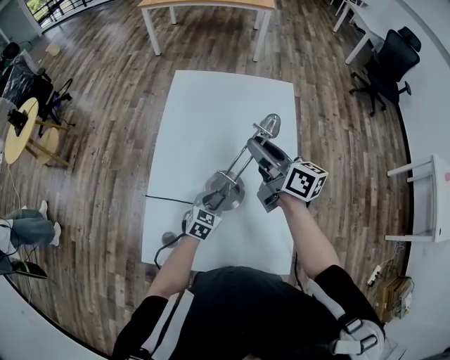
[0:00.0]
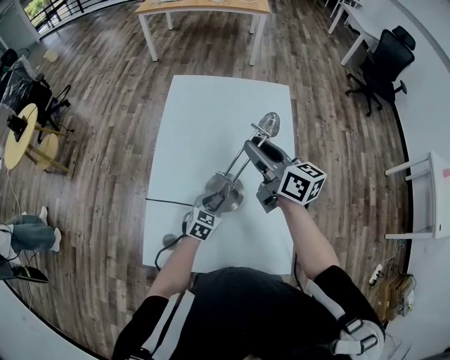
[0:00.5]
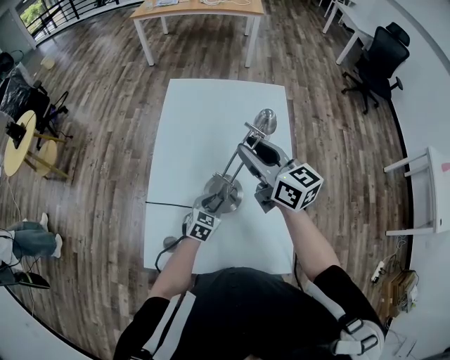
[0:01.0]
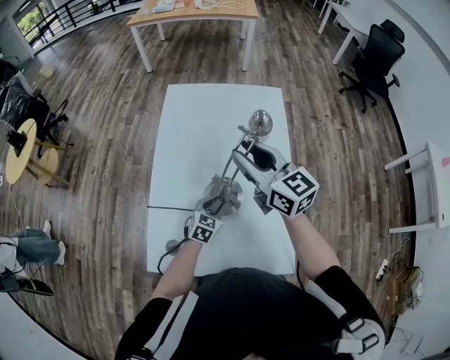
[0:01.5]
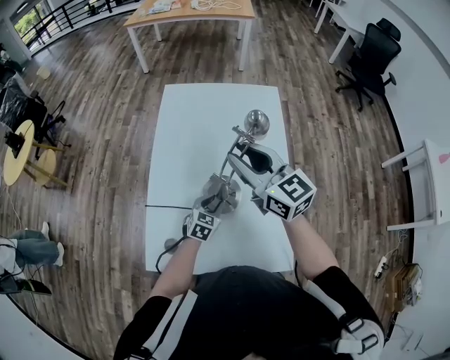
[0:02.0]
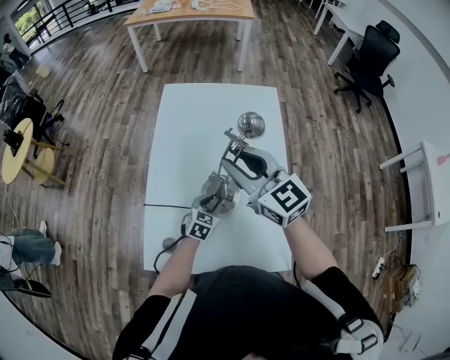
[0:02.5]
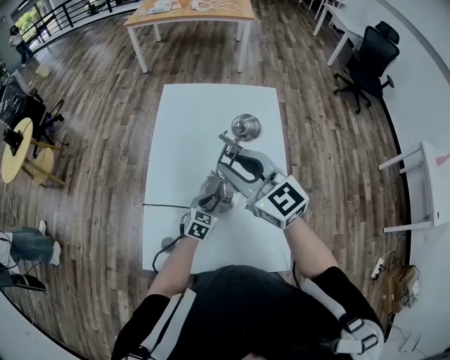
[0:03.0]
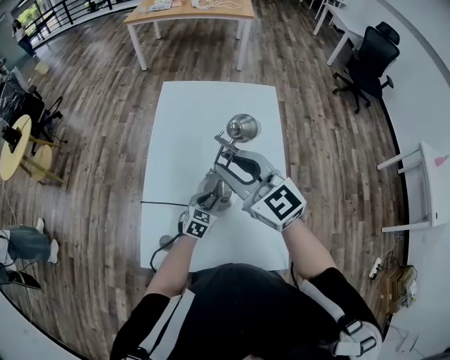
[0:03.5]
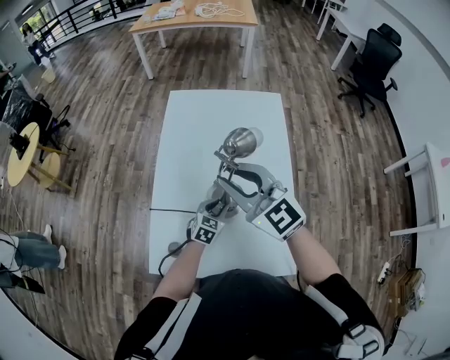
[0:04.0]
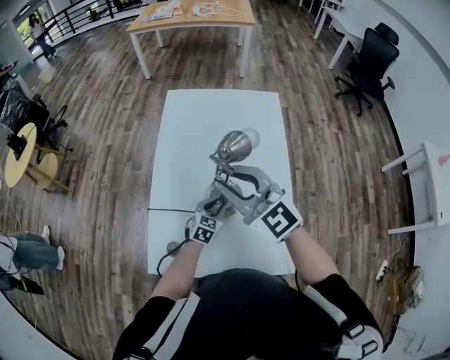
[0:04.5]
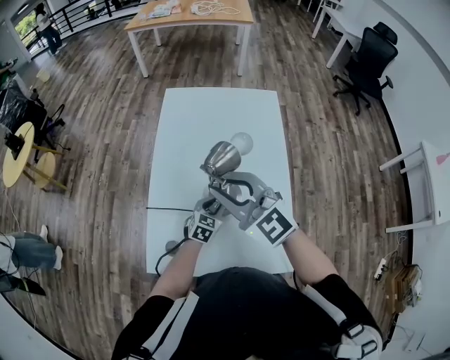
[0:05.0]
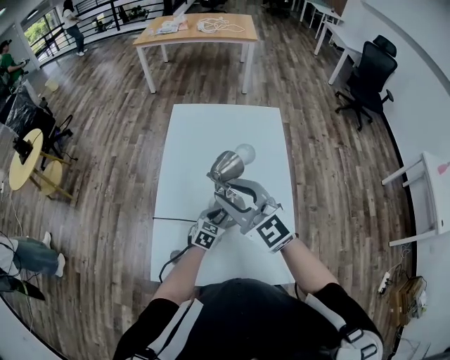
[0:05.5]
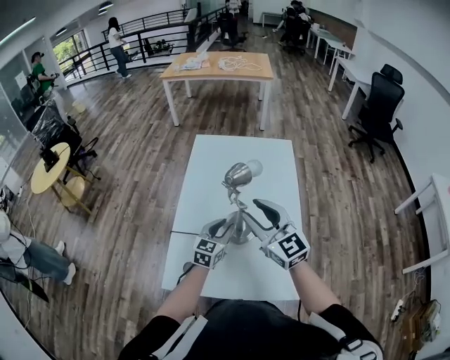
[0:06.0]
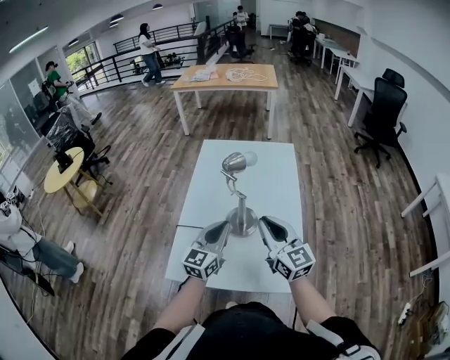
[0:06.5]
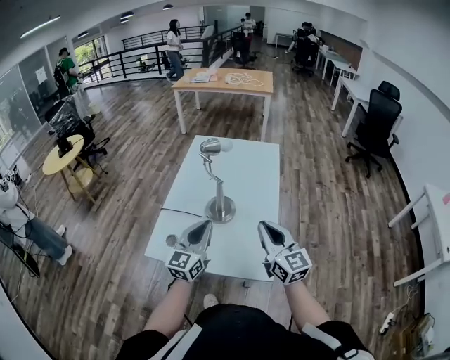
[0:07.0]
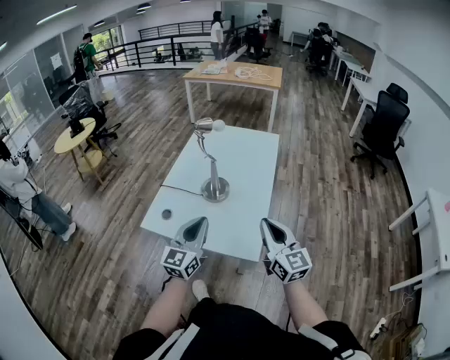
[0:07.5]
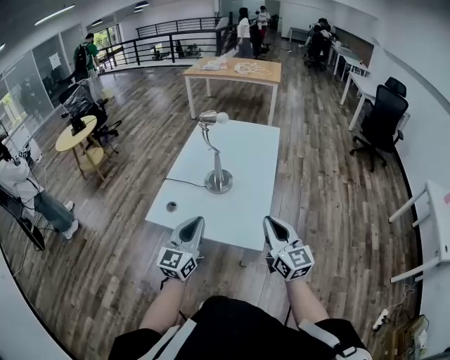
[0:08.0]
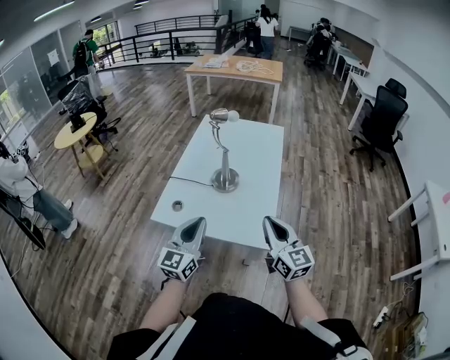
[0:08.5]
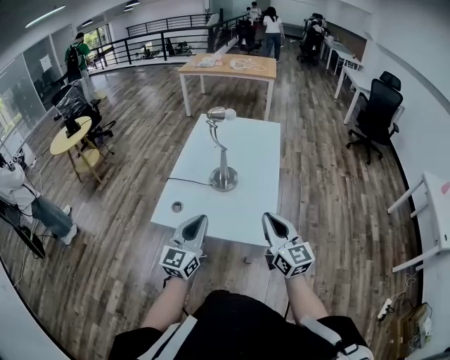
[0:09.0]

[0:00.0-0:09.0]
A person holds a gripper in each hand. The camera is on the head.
0:00.0 to 0:02.0: The right gripper travels upward and backward by approximately 10 cm, and turns by roughly 40 degrees.
0:02.0 to 0:04.5: The right gripper heads backward and to the left, covering roughly 10 cm, and changes its angle by some 20 degrees.
0:04.5 to 0:07.0: The left gripper moves upward and backward, some 30 cm, points its fingers some 40 degrees further upward, and closes its fingers. The right gripper travels backward and to the right by roughly 25 cm, turns by roughly 30 degrees, and opens and closes again.
0:07.0 to 0:09.0: Both grippers move backward, approximately 10 cm.

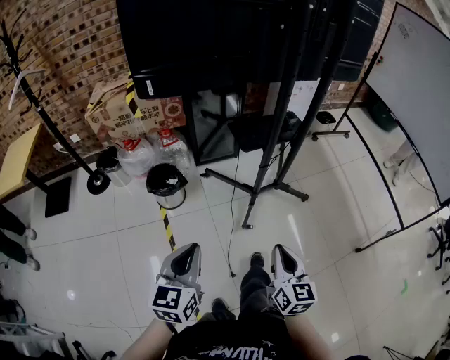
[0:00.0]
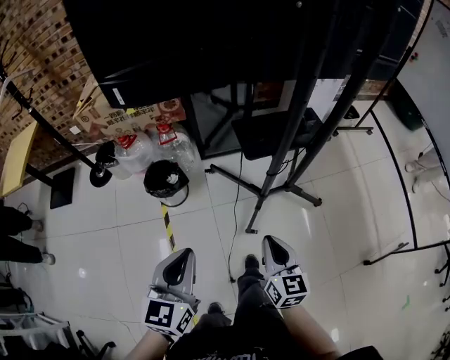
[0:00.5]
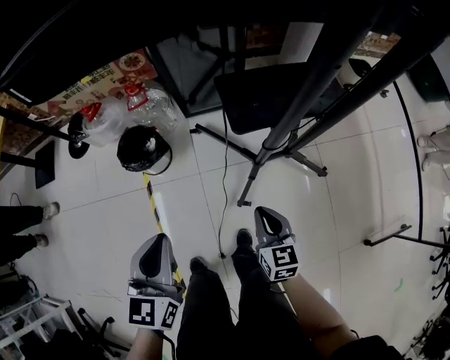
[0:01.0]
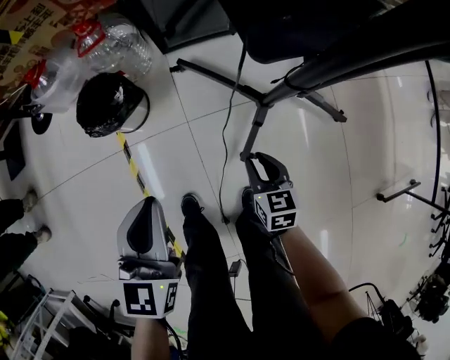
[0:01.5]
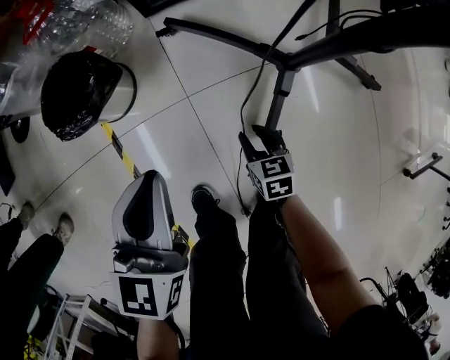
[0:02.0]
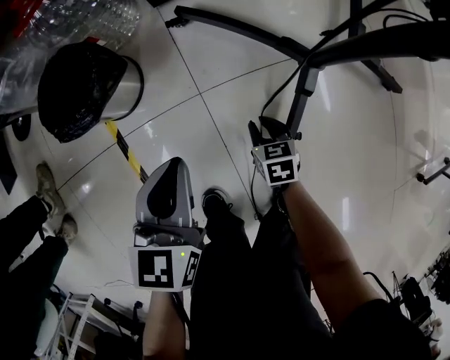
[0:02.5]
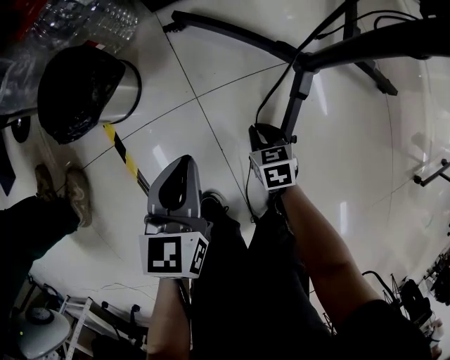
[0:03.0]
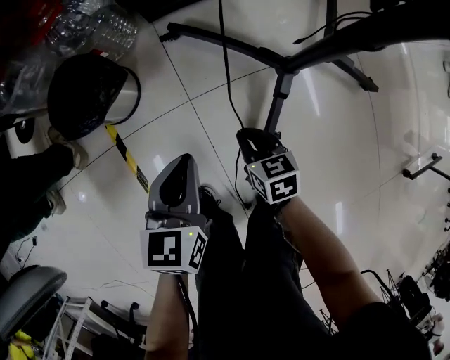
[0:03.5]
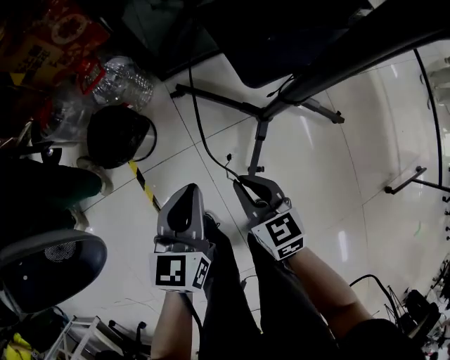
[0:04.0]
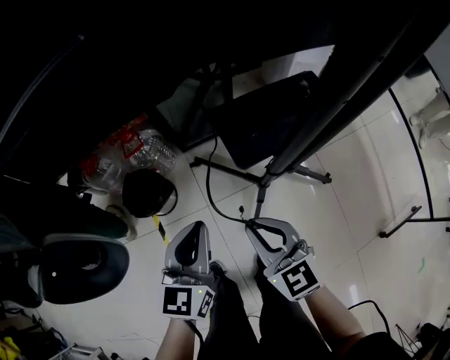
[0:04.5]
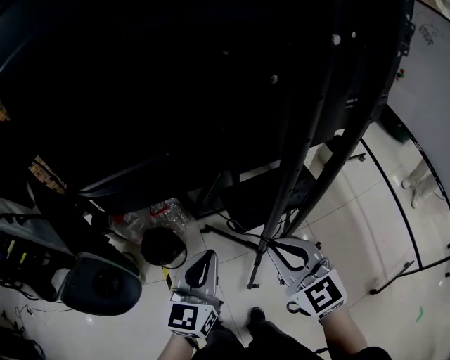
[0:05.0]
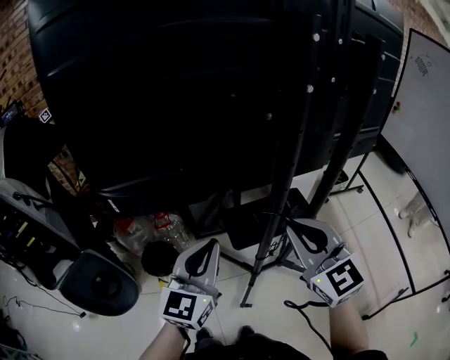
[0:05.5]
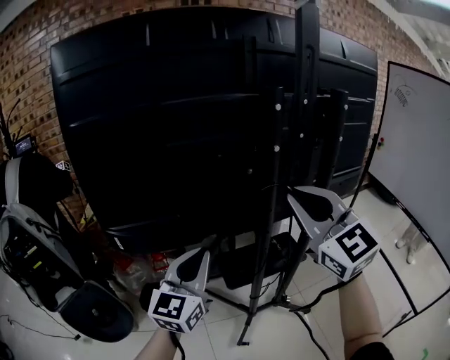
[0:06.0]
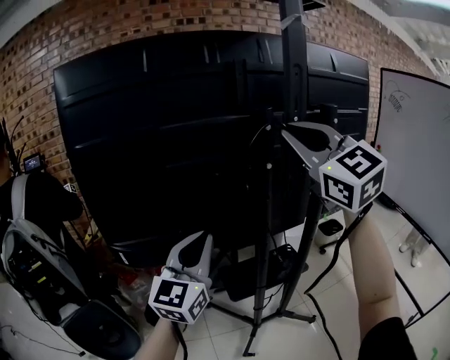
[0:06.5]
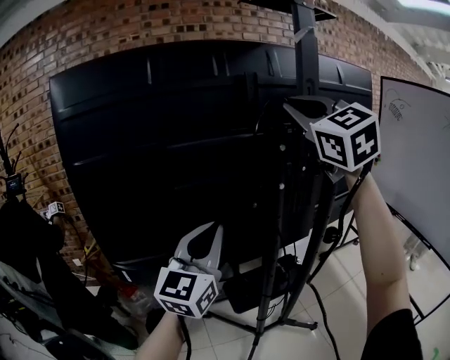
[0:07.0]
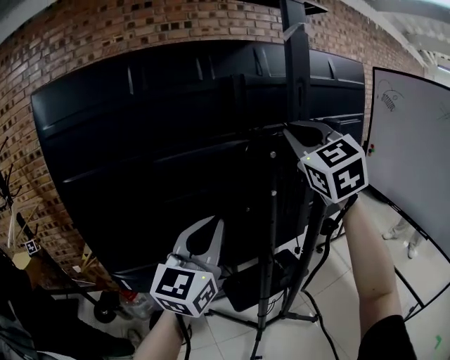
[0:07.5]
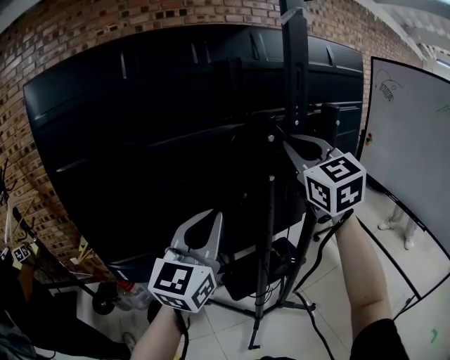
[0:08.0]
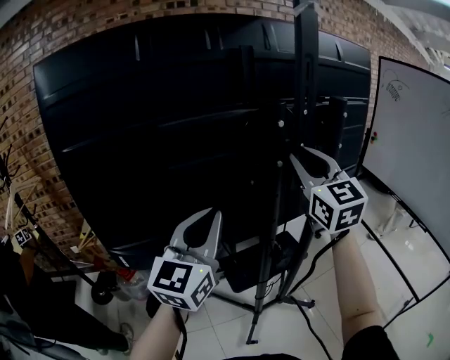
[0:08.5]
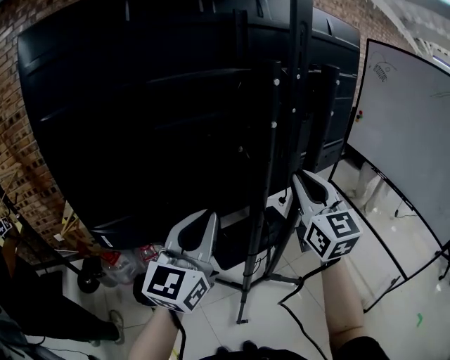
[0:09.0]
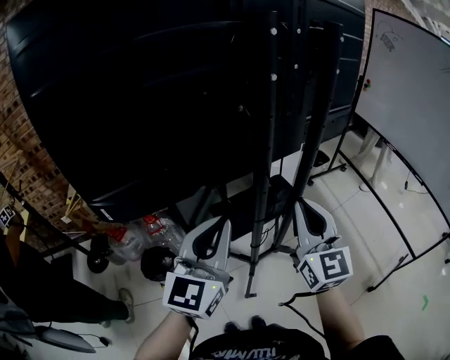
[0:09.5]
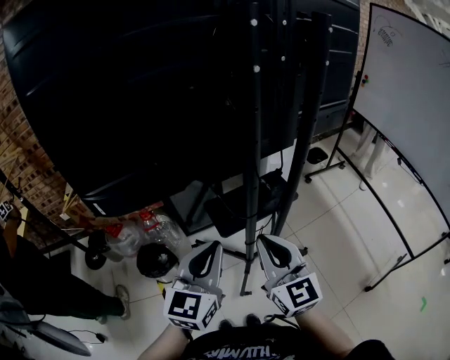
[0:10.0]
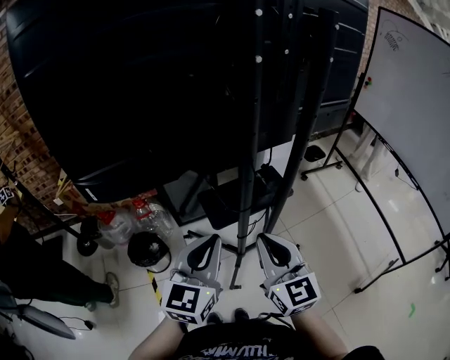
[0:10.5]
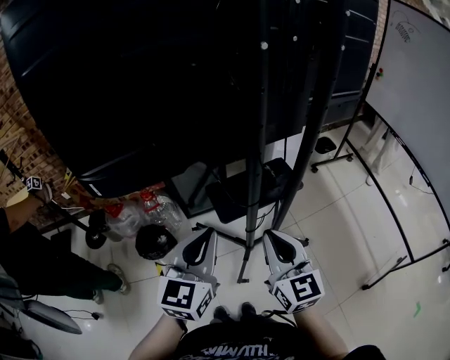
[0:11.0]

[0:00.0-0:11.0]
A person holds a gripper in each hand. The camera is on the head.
0:00.0 to 0:02.0: The grippers both shift downward and forward by roughly 60 cm. The right gripper tilts its fingers roughly 40 degrees downward, and opens up.
0:02.0 to 0:03.5: The right gripper closes its fingers. The left gripper heads downward, covering about 10 cm.
0:03.5 to 0:05.5: The grippers both shift upward by about 70 cm. The right gripper points its fingers roughly 50 degrees further upward, while the left gripper points its fingers roughly 40 degrees further upward.
0:05.5 to 0:07.5: Both grippers travel together upward and forward, roughly 30 cm. The right gripper changes its angle by approximately 20 degrees.
0:07.5 to 0:09.0: The right gripper heads downward and backward, covering roughly 25 cm, and changes its angle by approximately 20 degrees. The left gripper is displaced downward and backward by about 10 cm.
0:09.0 to 0:11.0: The right gripper goes about 25 cm downward and backward. The left gripper goes about 15 cm downward, and turns by about 20 degrees.

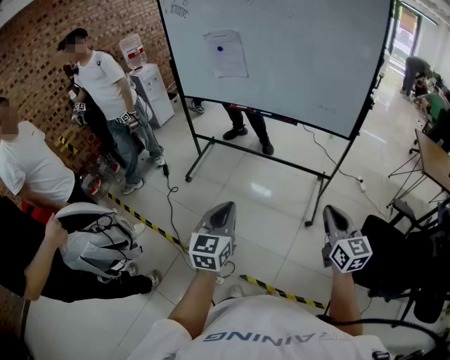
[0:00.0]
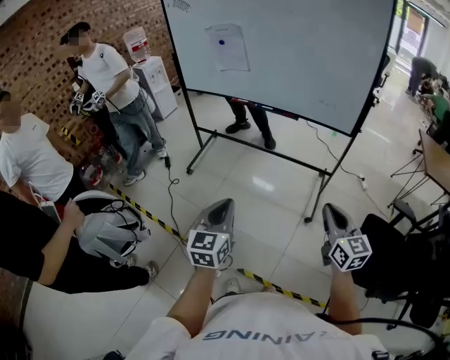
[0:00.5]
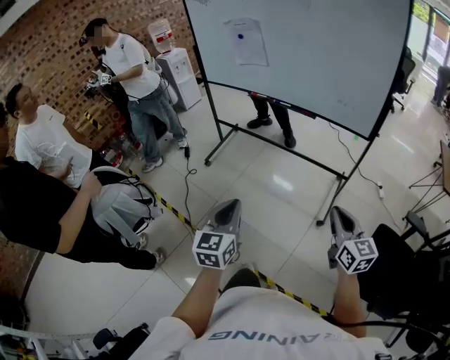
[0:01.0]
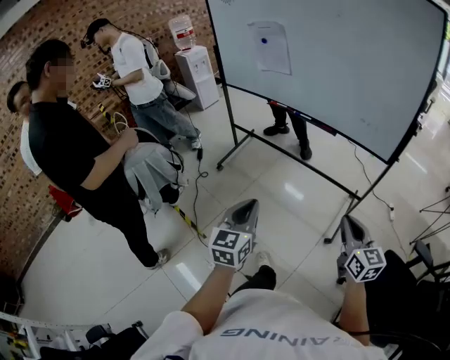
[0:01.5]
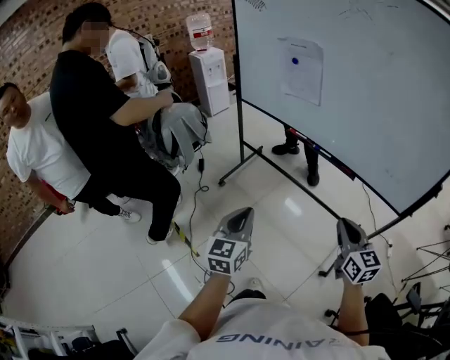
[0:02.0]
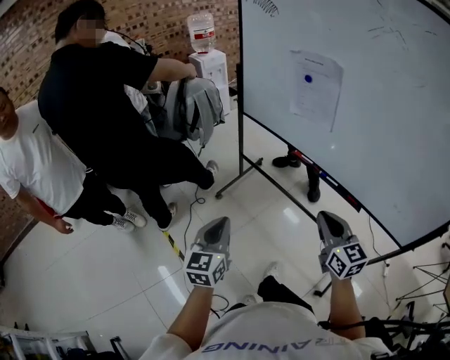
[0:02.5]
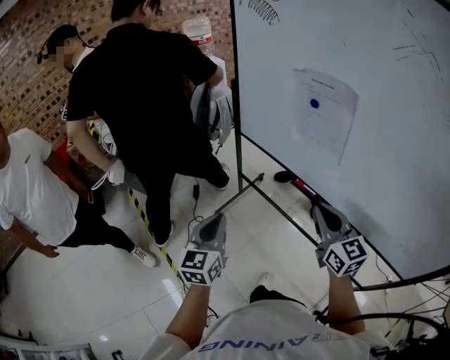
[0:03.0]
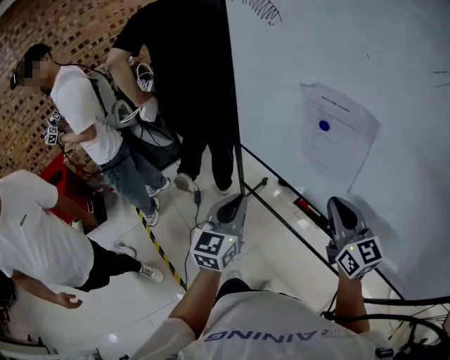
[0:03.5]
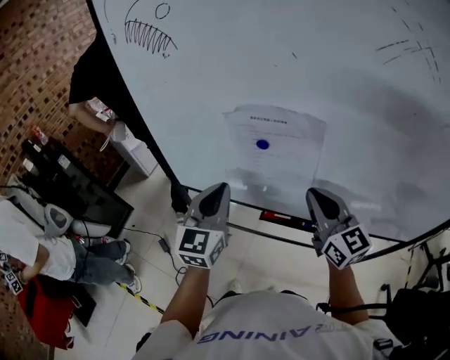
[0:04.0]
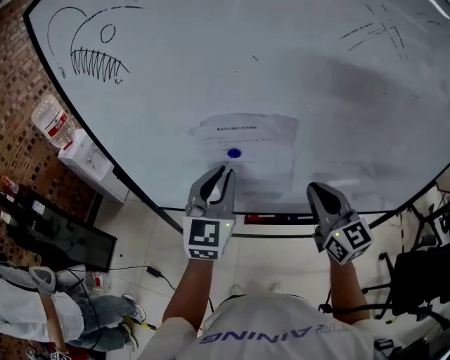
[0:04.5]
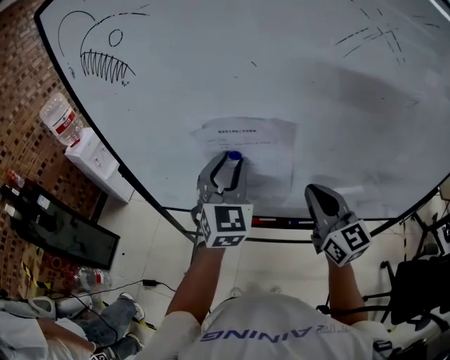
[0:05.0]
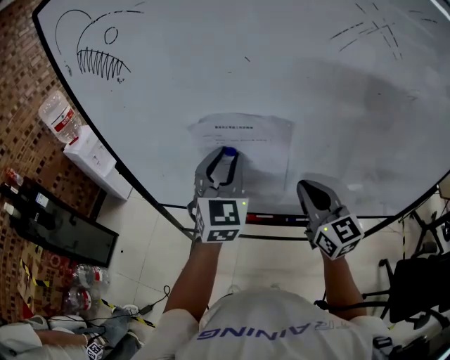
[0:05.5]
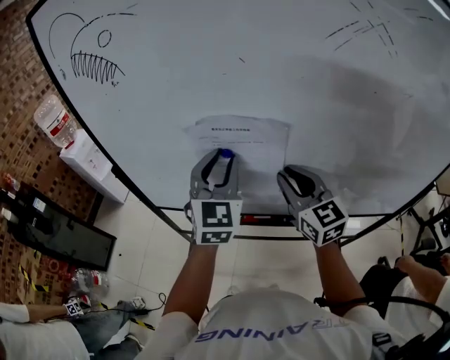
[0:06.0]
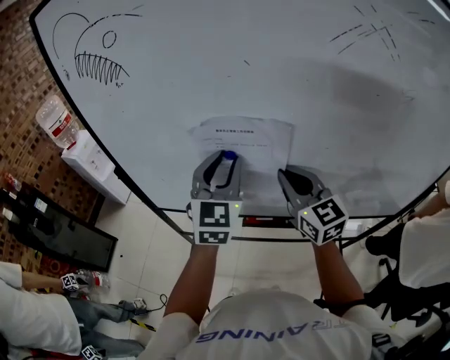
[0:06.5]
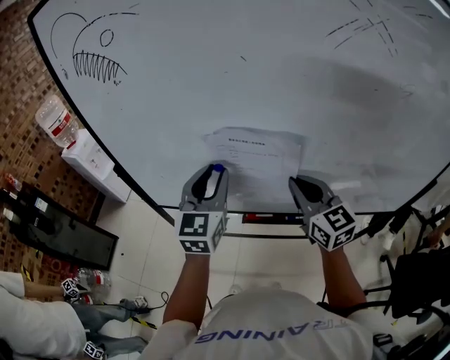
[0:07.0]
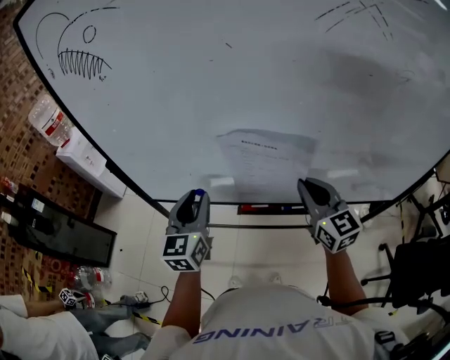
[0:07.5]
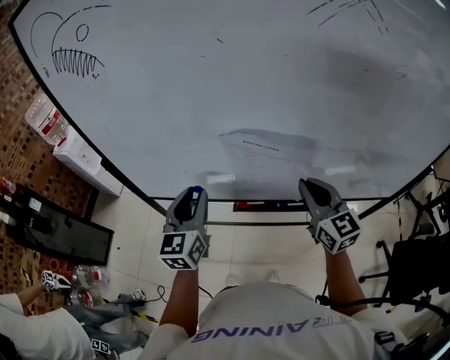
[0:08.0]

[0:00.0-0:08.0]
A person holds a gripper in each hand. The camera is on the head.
0:00.0 to 0:02.0: Both grippers move forward, about 25 cm.
0:02.0 to 0:04.0: The pair of grippers is taken some 50 cm. The left gripper rotates approximately 30 degrees.
0:04.0 to 0:06.0: The left gripper moves to the right, forward and upward, approximately 15 cm, and opens.
0:06.0 to 0:08.0: The left gripper shifts roughly 15 cm downward, to the left and backward, and swivels about 30 degrees, while the right gripper travels to the right and backward by some 10 cm.
